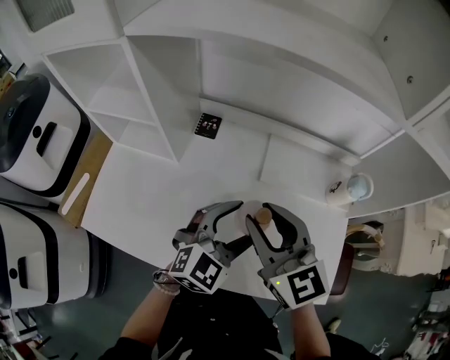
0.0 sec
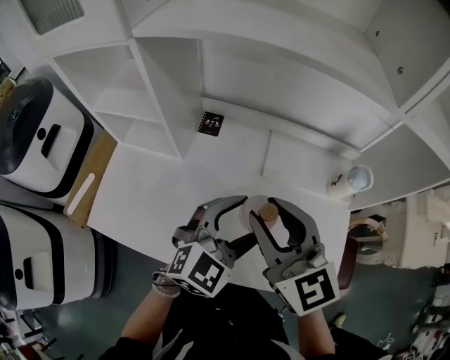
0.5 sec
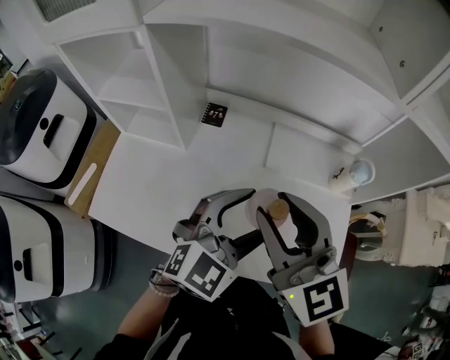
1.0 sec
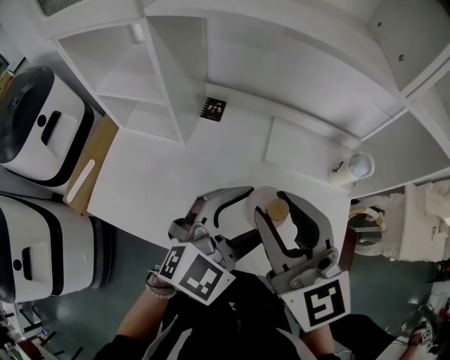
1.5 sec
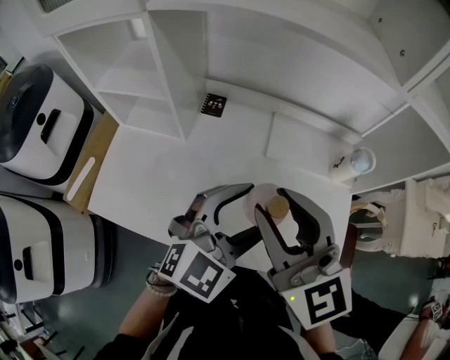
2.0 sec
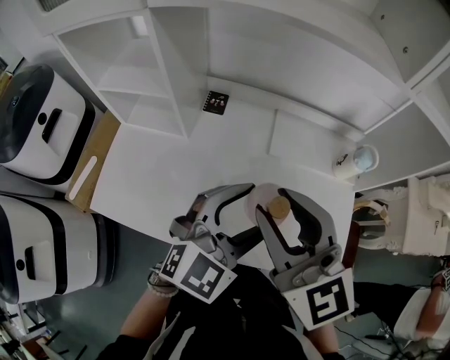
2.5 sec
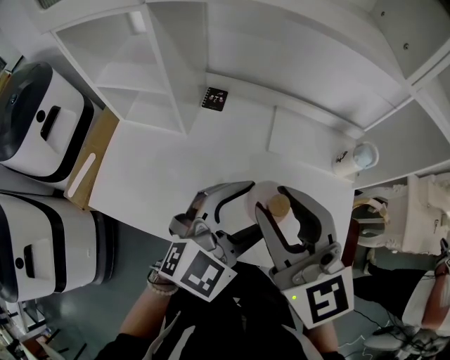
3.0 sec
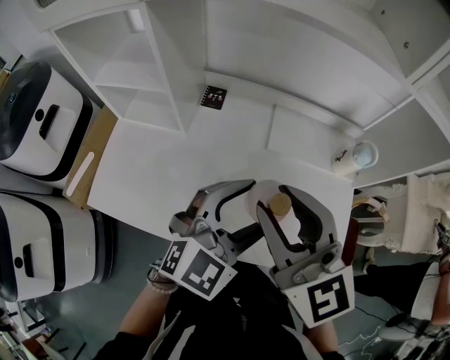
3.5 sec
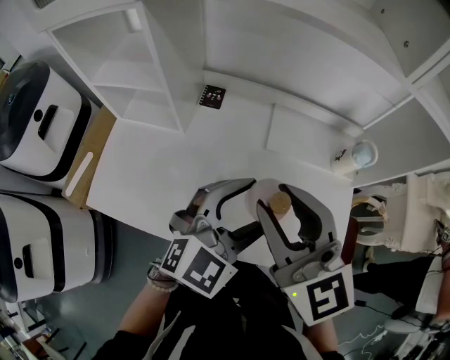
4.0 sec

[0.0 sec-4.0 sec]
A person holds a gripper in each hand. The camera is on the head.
0.0 sec to 2.0 sec: The grippers both shift upward and backward by approximately 10 cm.
2.0 sec to 4.0 sec: Both grippers stay about where they are.

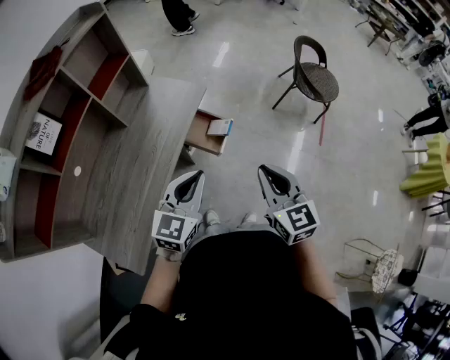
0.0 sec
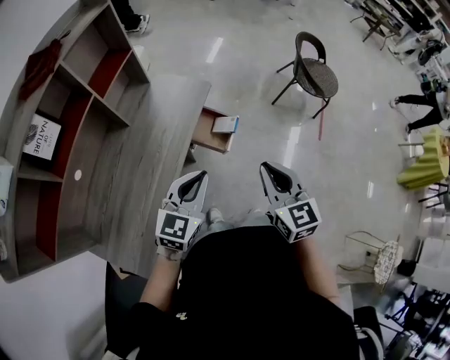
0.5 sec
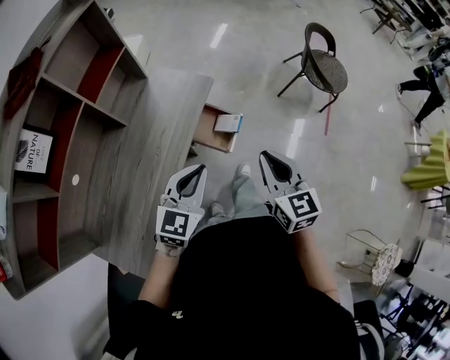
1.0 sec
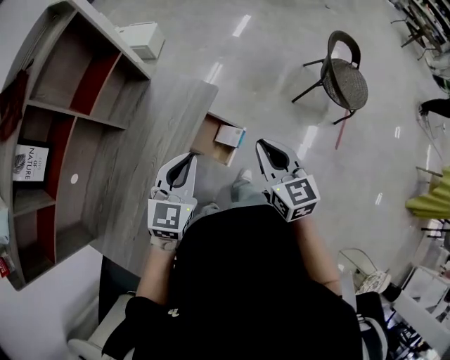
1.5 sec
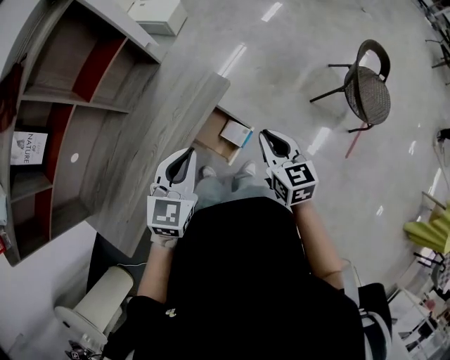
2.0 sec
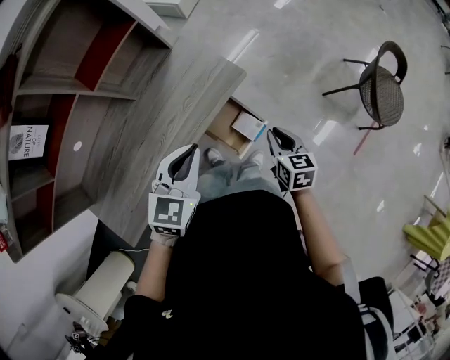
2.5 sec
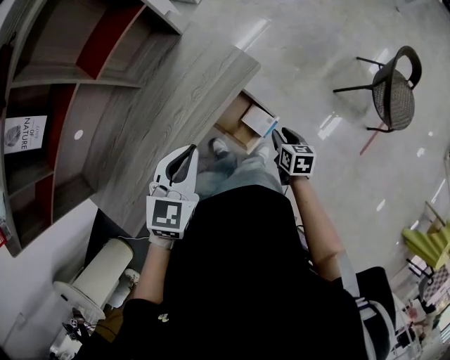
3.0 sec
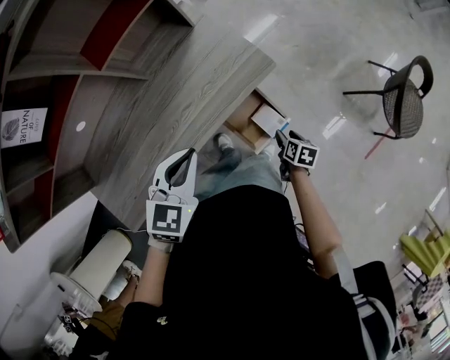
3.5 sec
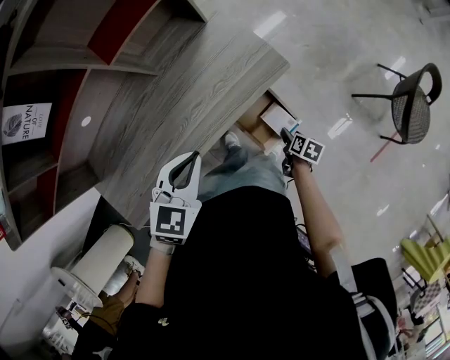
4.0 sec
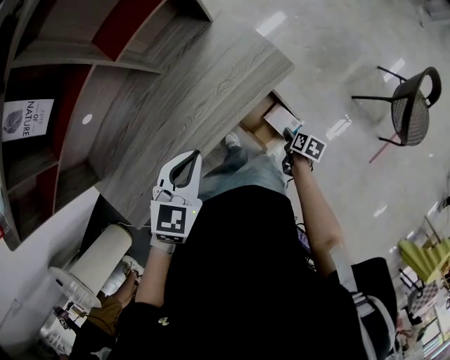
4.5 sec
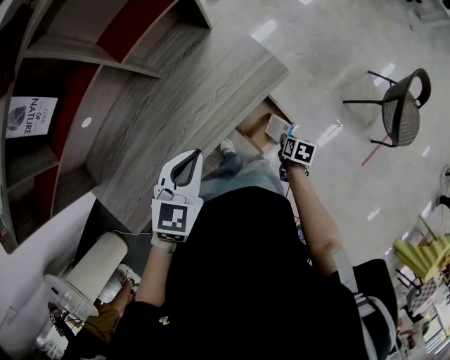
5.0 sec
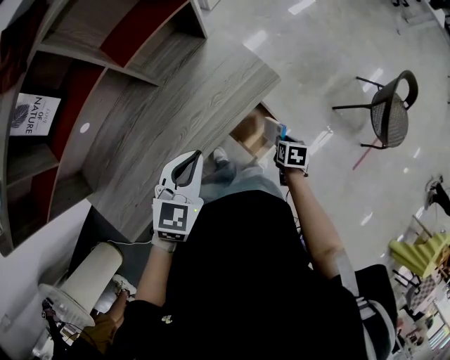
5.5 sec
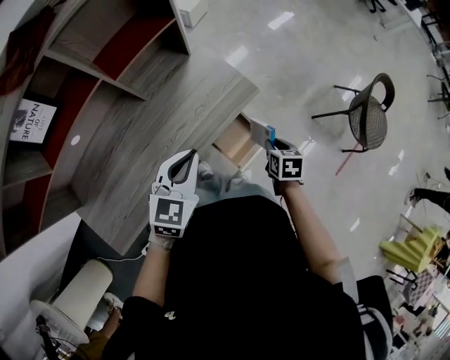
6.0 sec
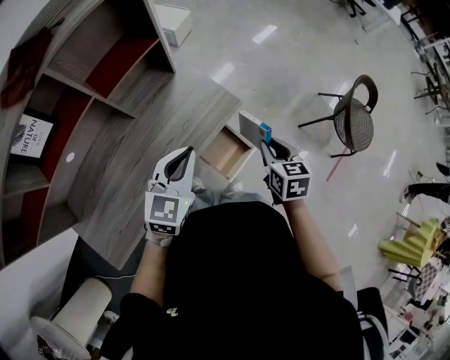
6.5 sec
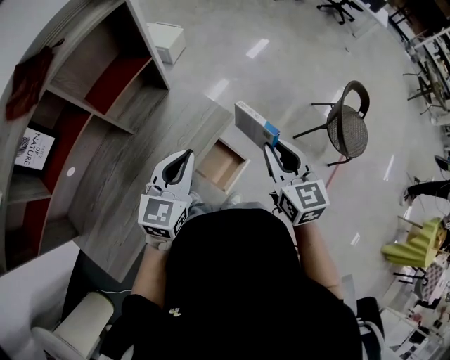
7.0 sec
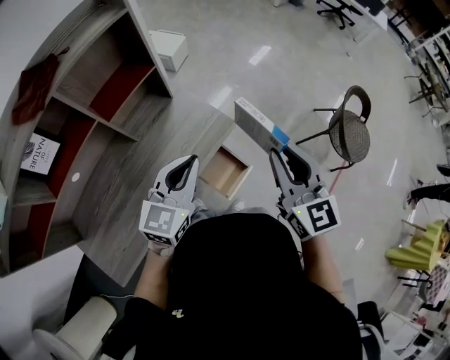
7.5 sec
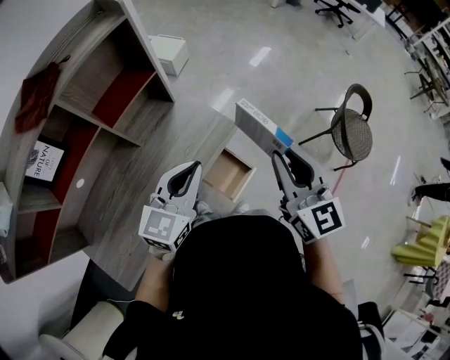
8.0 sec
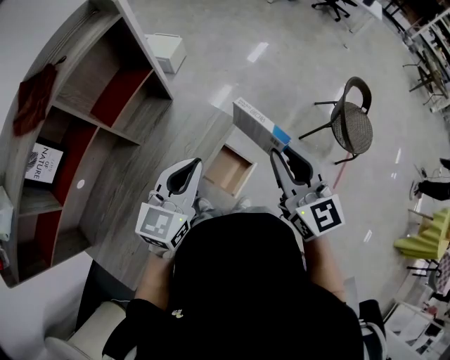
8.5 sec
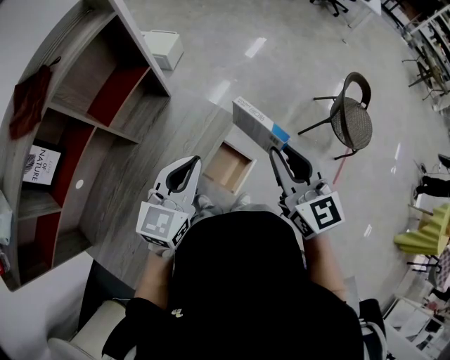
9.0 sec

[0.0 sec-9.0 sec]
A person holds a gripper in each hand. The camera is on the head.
0.0 sec to 2.0 sec: The left gripper heads forward, covering about 25 cm, and changes its angle by some 20 degrees. Meanwhile the right gripper travels forward and downward by approximately 35 cm, and rotates roughly 20 degrees.
2.0 sec to 4.5 sec: The left gripper is displaced to the left and downward by some 15 cm; the right gripper shifts about 35 cm downward, angles its fingers downward, by about 40 degrees, and opens.
4.5 sec to 7.0 sec: The right gripper shifts some 50 cm upward, angles its fingers upward, by approximately 40 degrees, and closes up. The left gripper shifts approximately 15 cm upward, to the right and forward, and swivels approximately 30 degrees.
7.0 sec to 9.0 sec: The right gripper is displaced upward by some 5 cm.

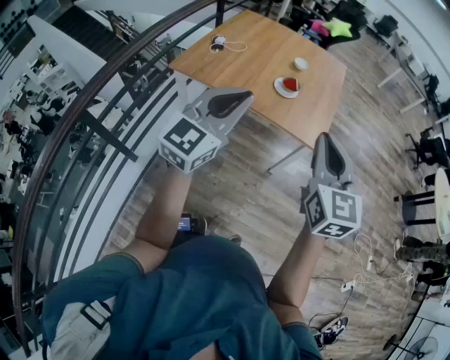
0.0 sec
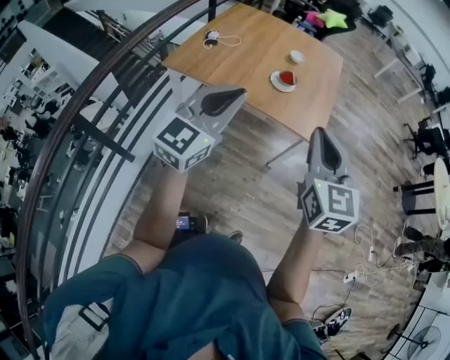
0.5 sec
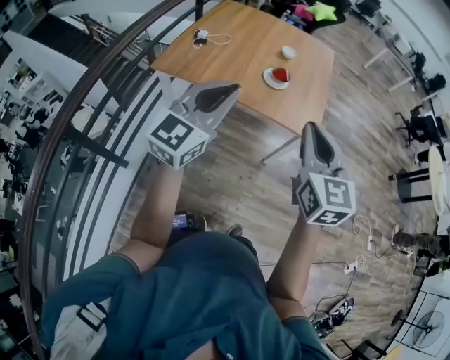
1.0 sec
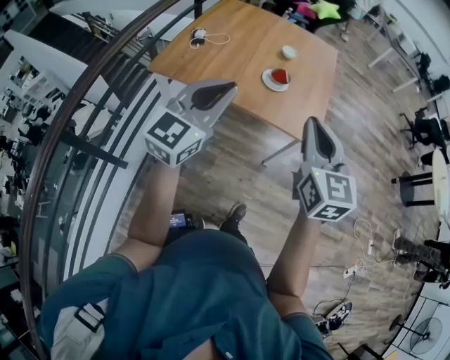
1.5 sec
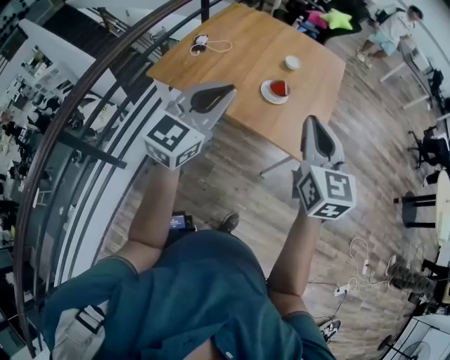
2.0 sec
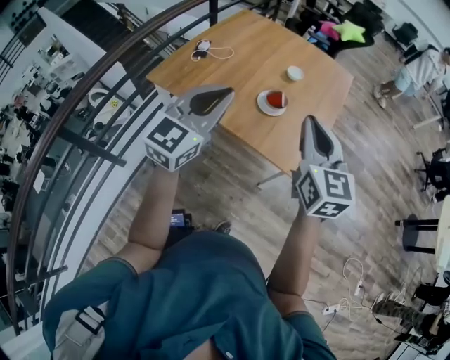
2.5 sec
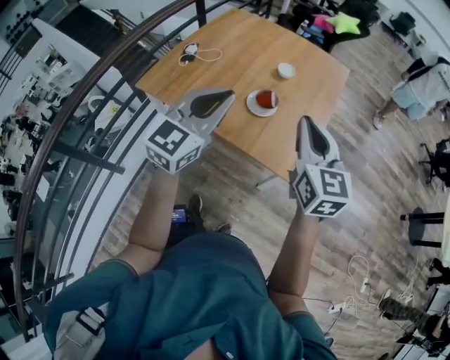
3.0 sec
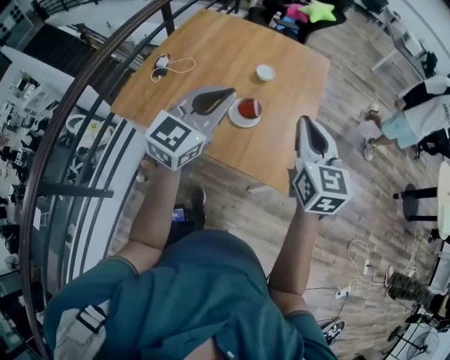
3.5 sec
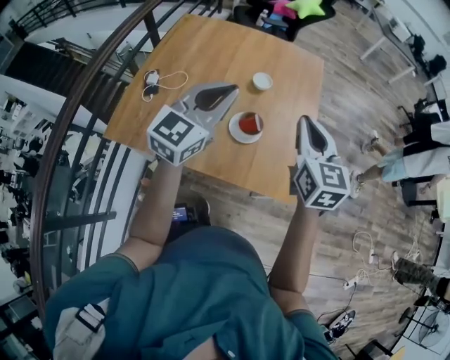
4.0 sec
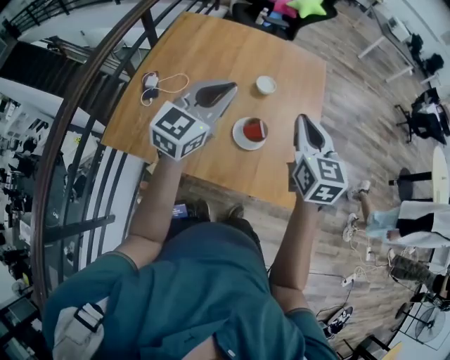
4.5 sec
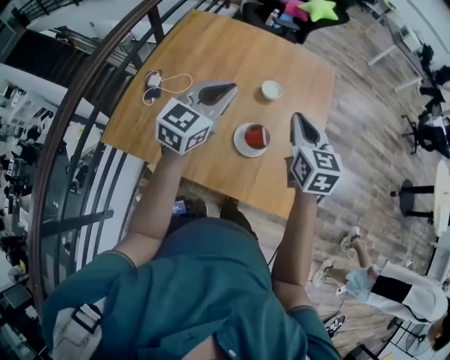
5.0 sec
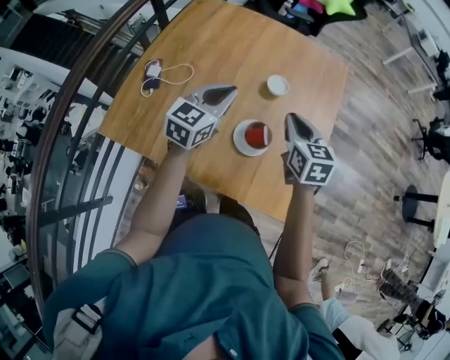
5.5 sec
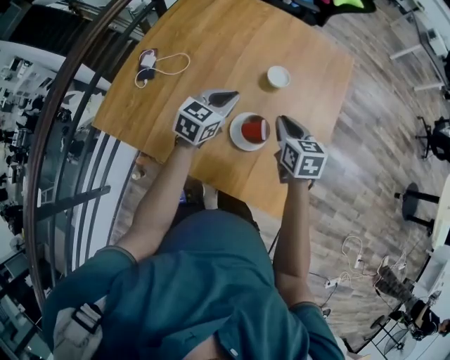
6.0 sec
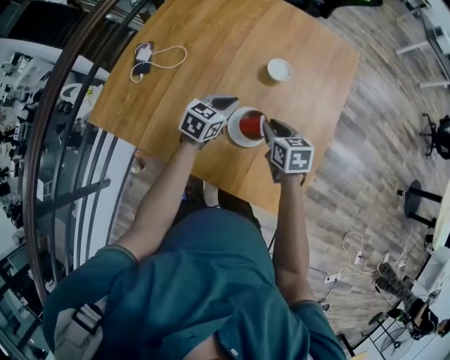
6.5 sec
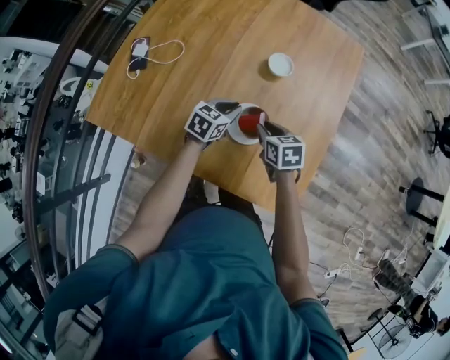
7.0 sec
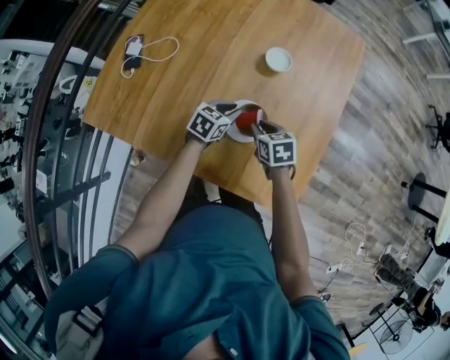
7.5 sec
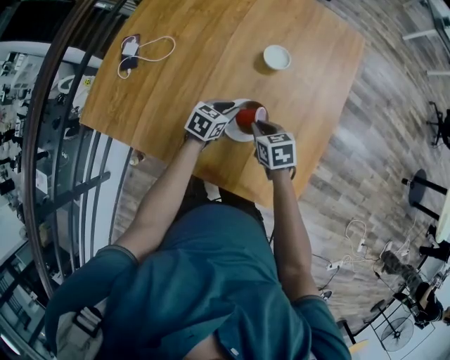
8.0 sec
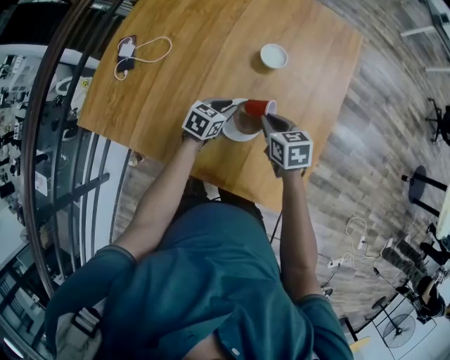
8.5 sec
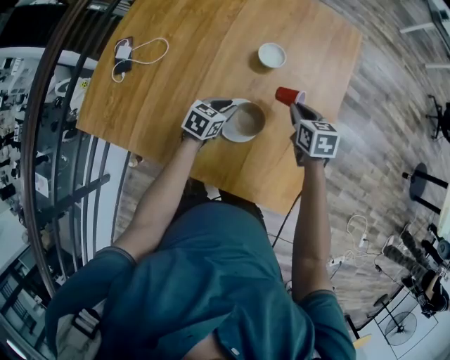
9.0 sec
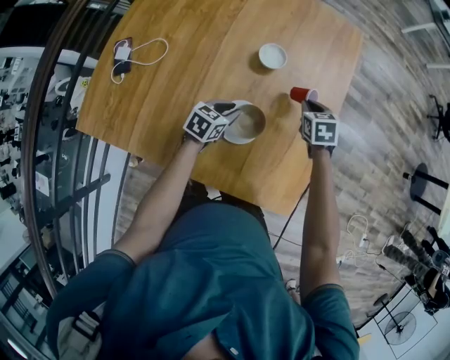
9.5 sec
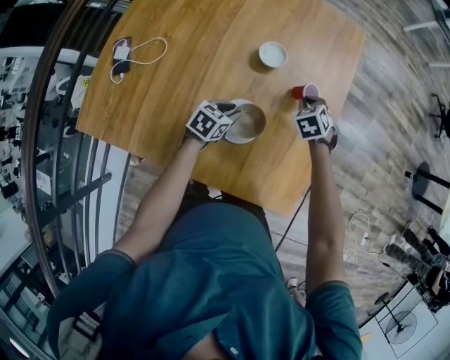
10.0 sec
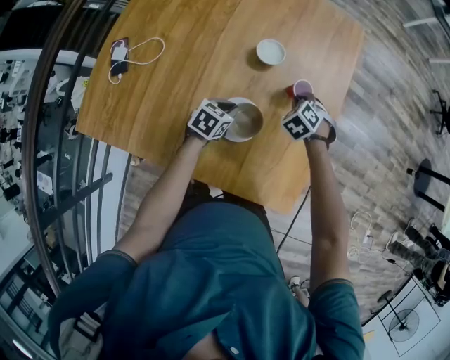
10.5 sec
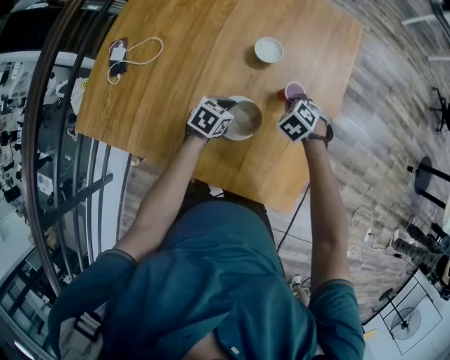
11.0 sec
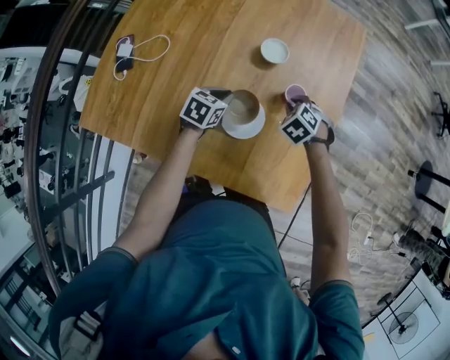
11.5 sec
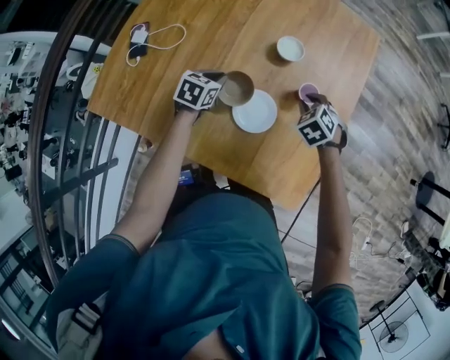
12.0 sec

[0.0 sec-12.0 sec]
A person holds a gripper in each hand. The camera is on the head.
0.0 sec to 2.0 sec: Both grippers move forward, about 15 cm.
2.0 sec to 4.0 sec: Both grippers move forward, roughly 30 cm.
4.0 sec to 6.0 sec: Both grippers move downward and forward, some 30 cm. The left gripper turns by approximately 30 degrees, while the right gripper changes its angle by roughly 30 degrees.
6.0 sec to 8.0 sec: Both grippers travel together downward, some 20 cm. The left gripper rotates some 20 degrees. The right gripper rotates some 20 degrees.
8.0 sec to 10.0 sec: The right gripper shifts by some 20 cm, and swivels approximately 40 degrees.
10.0 sec to 12.0 sec: The left gripper heads to the left, covering about 10 cm, while the right gripper moves backward, approximately 5 cm.

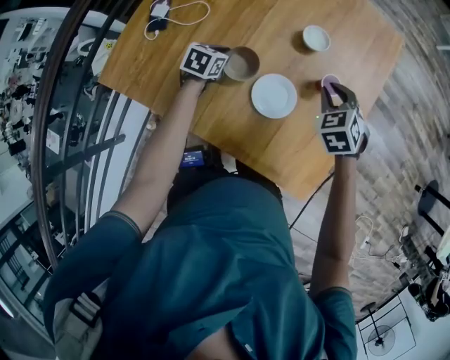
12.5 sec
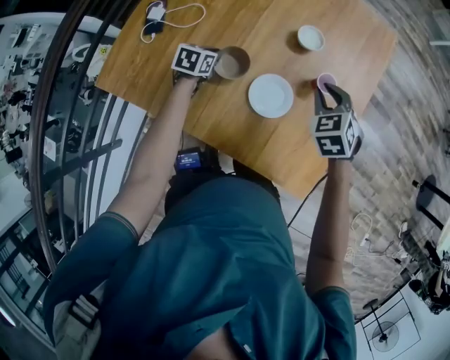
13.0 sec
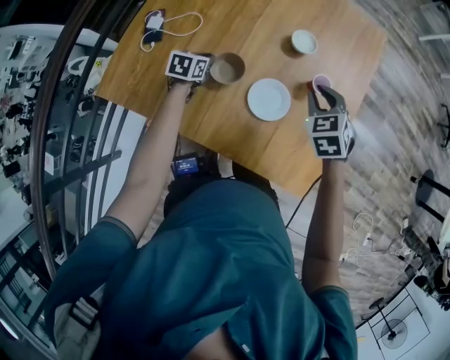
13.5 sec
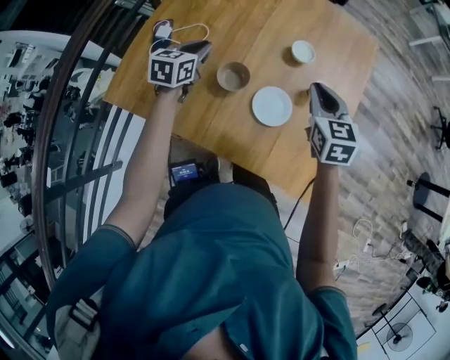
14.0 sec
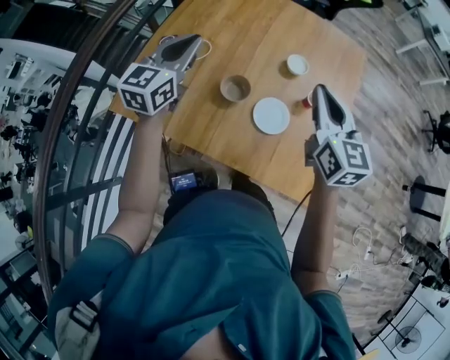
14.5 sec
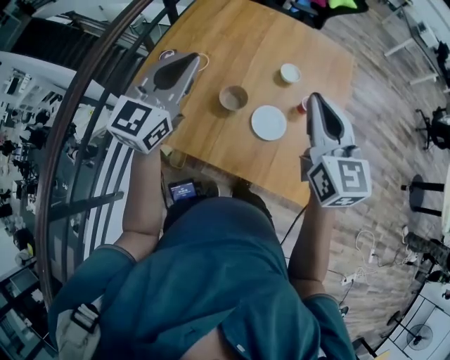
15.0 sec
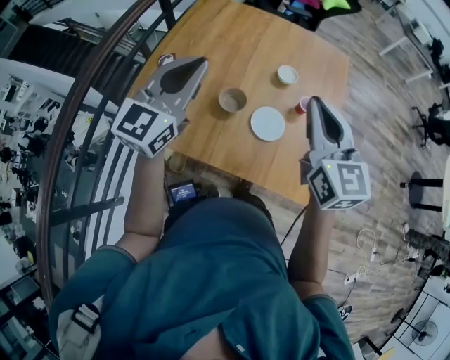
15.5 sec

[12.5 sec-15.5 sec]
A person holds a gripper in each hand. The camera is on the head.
12.5 sec to 14.0 sec: Both grippers move upward and to the left, some 15 cm. The right gripper swivels about 40 degrees. Meanwhile the left gripper rotates roughly 20 degrees.
14.0 sec to 15.5 sec: The two grippers go about 25 cm upward and backward. The right gripper rotates roughly 20 degrees, while the left gripper angles its fingers upward, by approximately 30 degrees.
